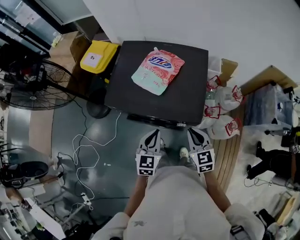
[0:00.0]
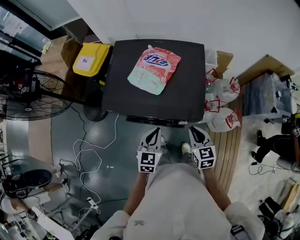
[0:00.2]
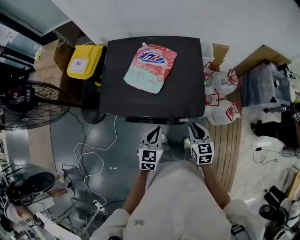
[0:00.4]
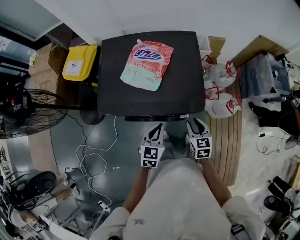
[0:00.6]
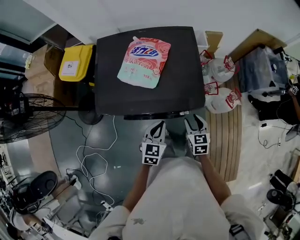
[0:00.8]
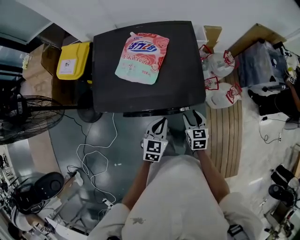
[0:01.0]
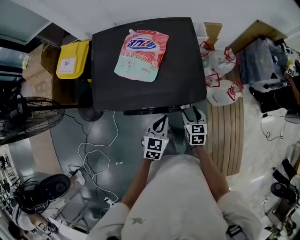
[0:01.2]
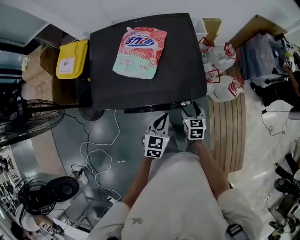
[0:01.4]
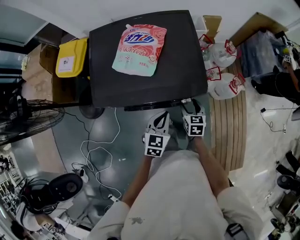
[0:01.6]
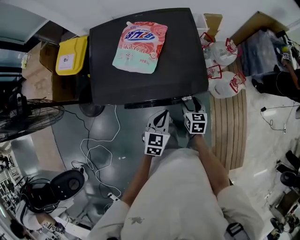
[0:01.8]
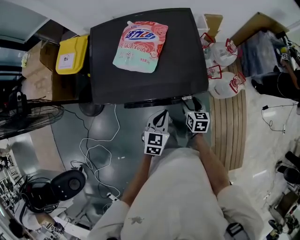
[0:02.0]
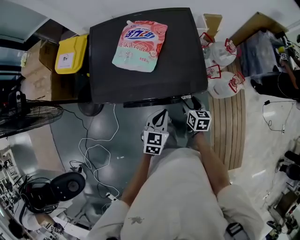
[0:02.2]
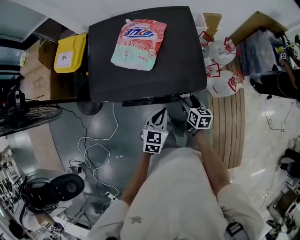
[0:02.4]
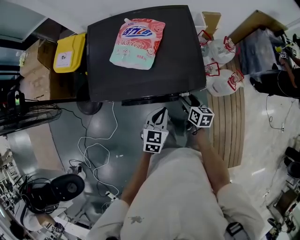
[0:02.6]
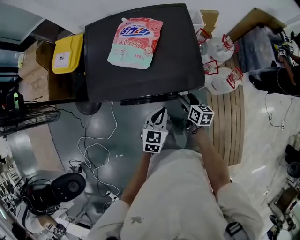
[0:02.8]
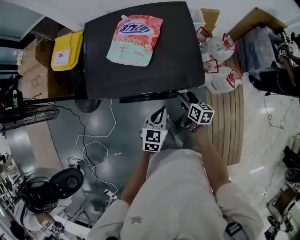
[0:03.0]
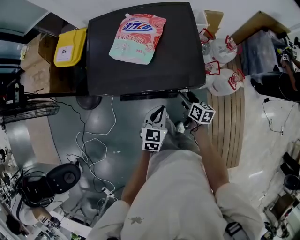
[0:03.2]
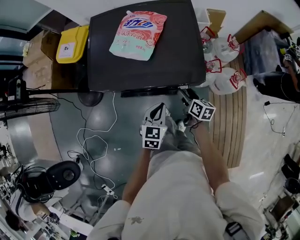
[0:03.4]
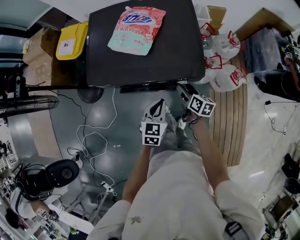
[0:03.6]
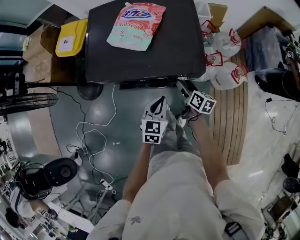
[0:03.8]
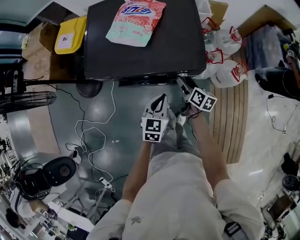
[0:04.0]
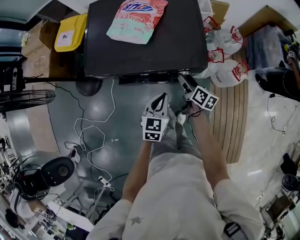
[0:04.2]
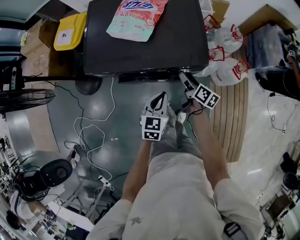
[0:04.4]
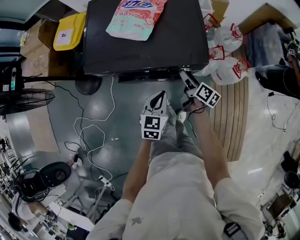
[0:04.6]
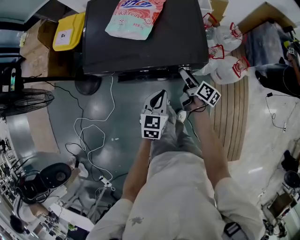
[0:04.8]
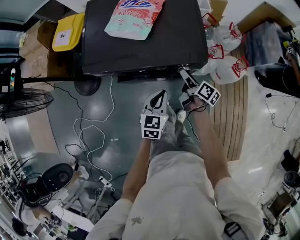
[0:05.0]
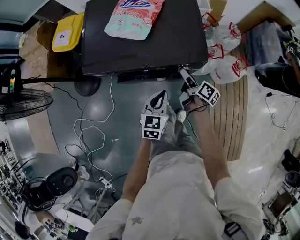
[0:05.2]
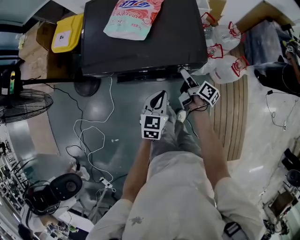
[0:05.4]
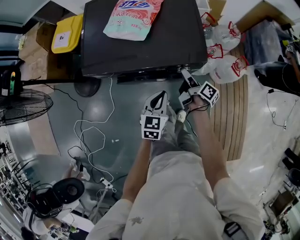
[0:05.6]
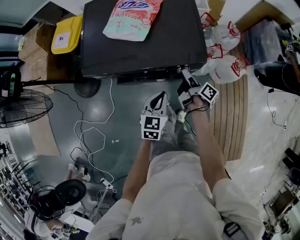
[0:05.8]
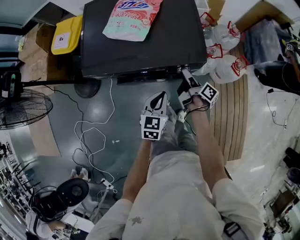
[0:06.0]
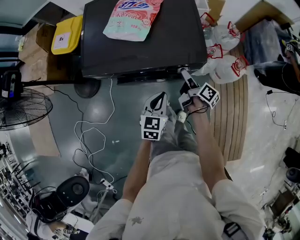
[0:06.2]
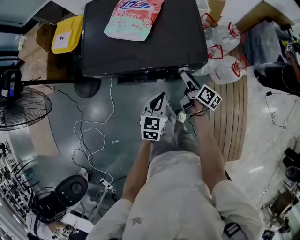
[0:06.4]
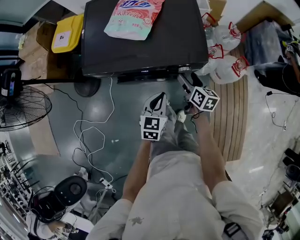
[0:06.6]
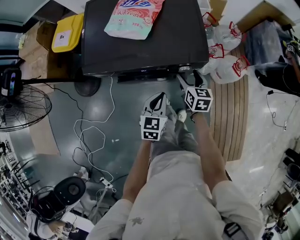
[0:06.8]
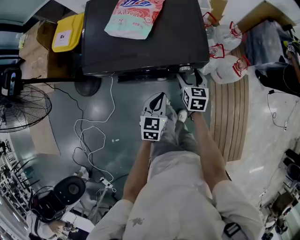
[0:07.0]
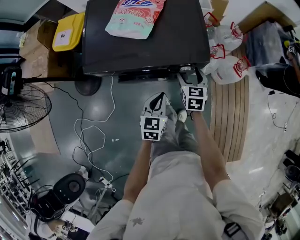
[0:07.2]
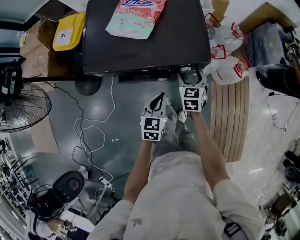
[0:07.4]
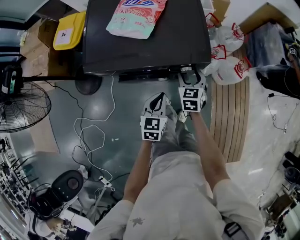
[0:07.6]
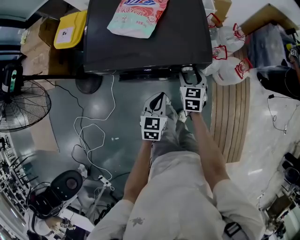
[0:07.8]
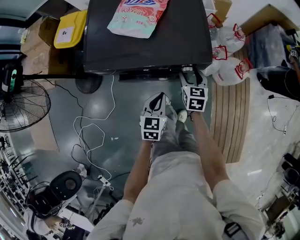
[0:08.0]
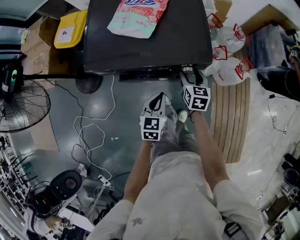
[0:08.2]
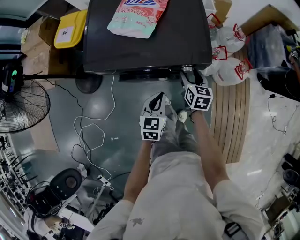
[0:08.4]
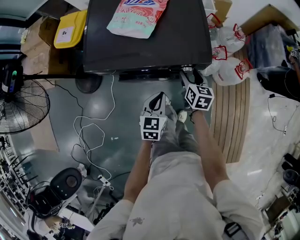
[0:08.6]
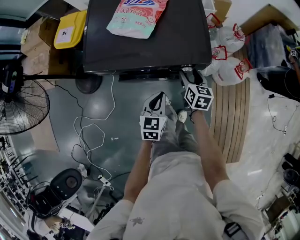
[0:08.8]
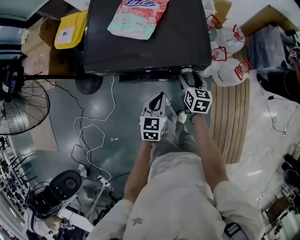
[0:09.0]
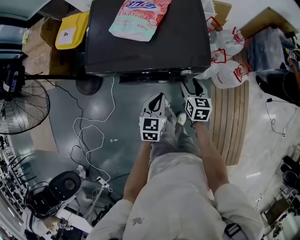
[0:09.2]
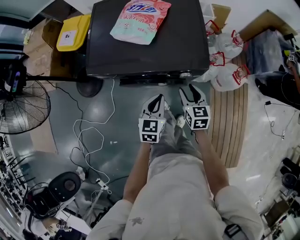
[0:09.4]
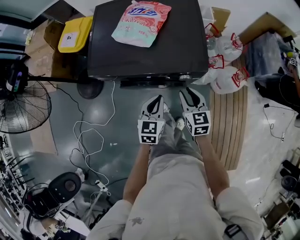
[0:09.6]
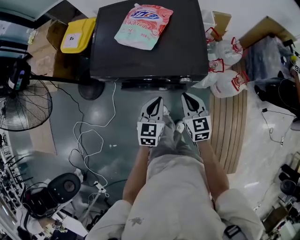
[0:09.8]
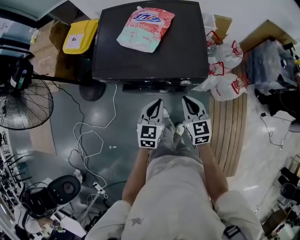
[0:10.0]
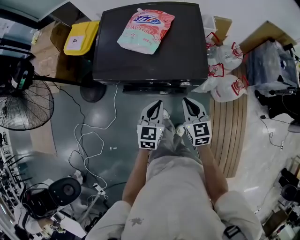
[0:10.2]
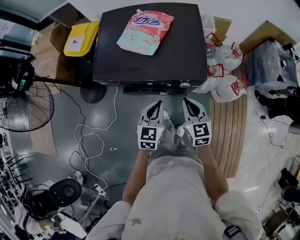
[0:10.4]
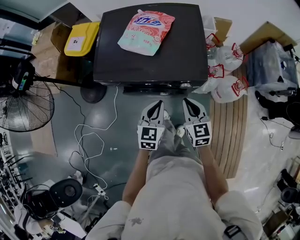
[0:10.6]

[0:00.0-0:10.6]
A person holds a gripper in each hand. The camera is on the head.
0:00.0 to 0:01.6: The left gripper heads downward, covering roughly 10 cm, and turns by some 20 degrees. Meanwhile the right gripper goes roughly 20 cm downward, swivels about 40 degrees, and opens.
0:01.6 to 0:03.0: The right gripper swivels some 30 degrees.
0:03.0 to 0:04.6: The right gripper turns by roughly 30 degrees.
0:04.6 to 0:06.0: The right gripper swivels about 30 degrees.
0:06.0 to 0:07.6: The right gripper twists about 90 degrees counterclockwise, seen from behind.
0:07.6 to 0:09.0: The right gripper swivels some 20 degrees.
0:09.0 to 0:10.6: The left gripper heads upward, covering roughly 5 cm, while the right gripper moves upward and backward, roughly 15 cm, rotates about 30 degrees, and closes its fingers.

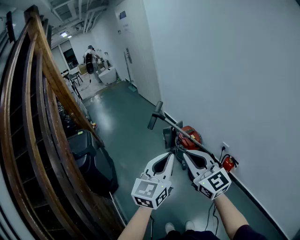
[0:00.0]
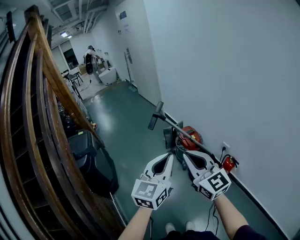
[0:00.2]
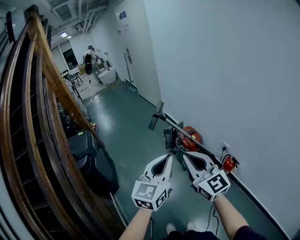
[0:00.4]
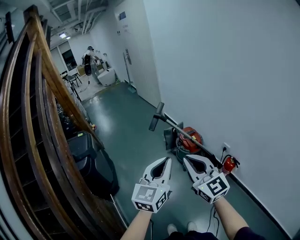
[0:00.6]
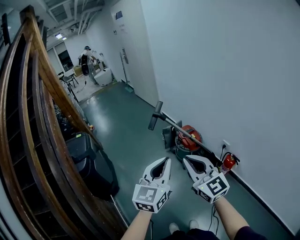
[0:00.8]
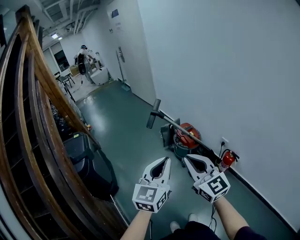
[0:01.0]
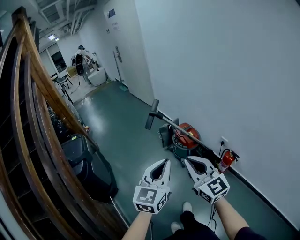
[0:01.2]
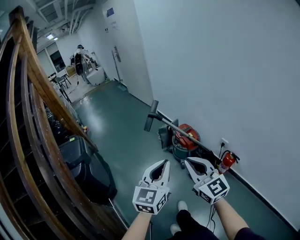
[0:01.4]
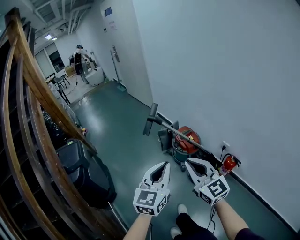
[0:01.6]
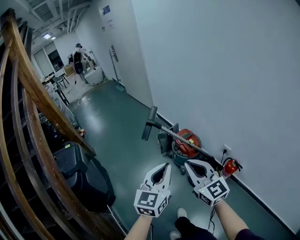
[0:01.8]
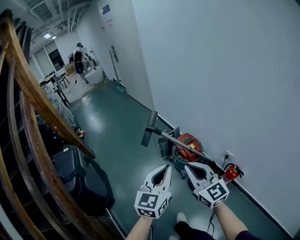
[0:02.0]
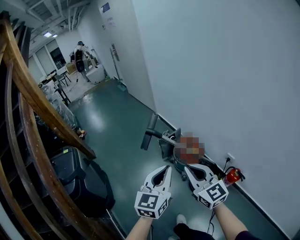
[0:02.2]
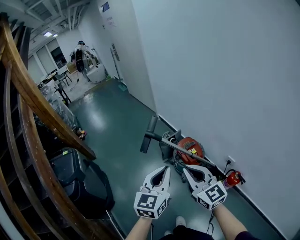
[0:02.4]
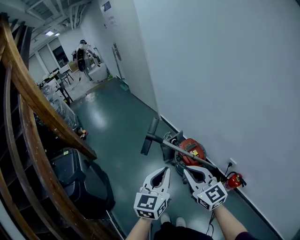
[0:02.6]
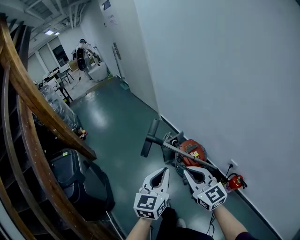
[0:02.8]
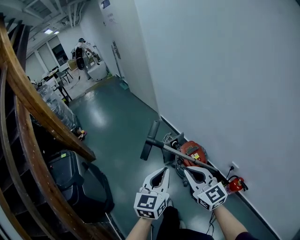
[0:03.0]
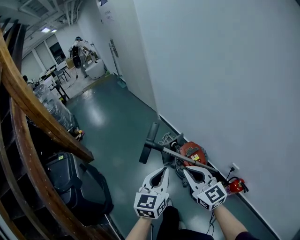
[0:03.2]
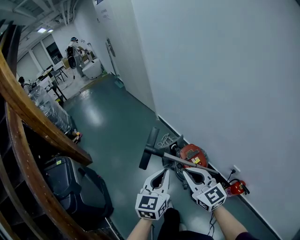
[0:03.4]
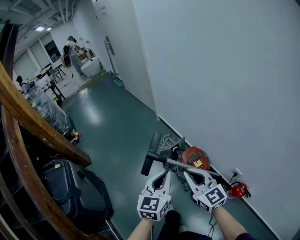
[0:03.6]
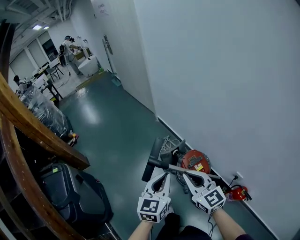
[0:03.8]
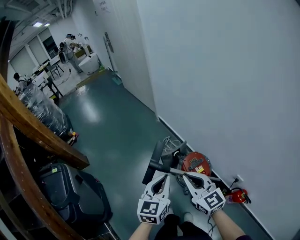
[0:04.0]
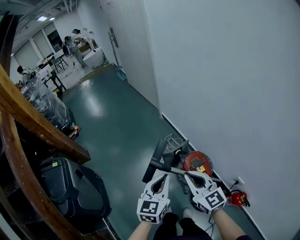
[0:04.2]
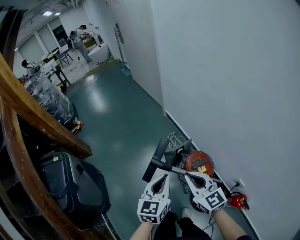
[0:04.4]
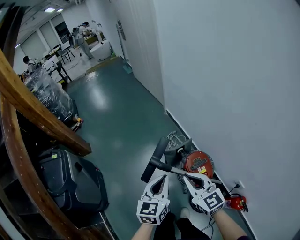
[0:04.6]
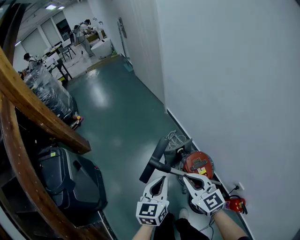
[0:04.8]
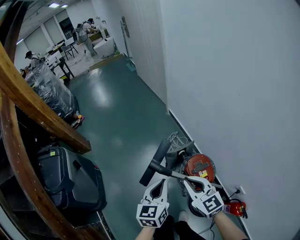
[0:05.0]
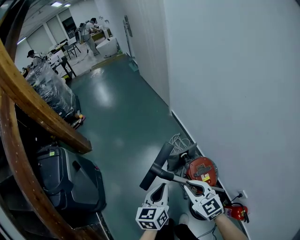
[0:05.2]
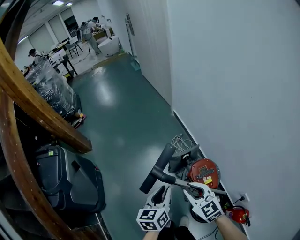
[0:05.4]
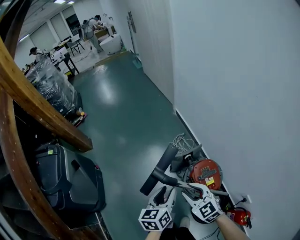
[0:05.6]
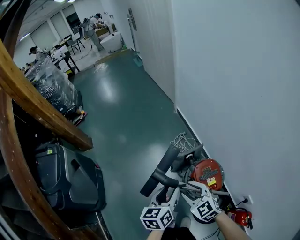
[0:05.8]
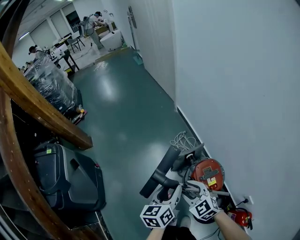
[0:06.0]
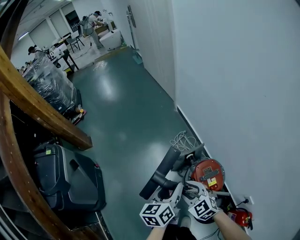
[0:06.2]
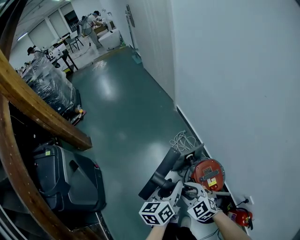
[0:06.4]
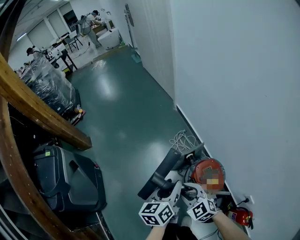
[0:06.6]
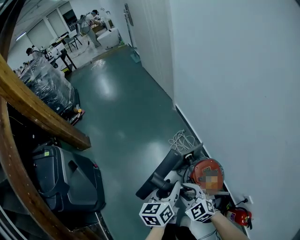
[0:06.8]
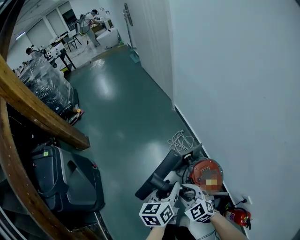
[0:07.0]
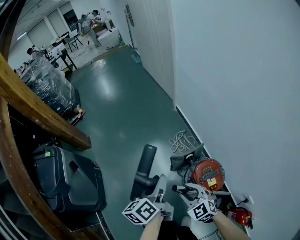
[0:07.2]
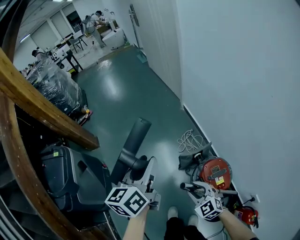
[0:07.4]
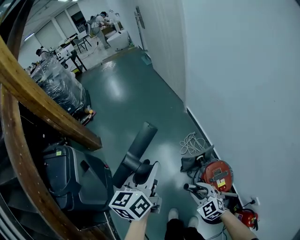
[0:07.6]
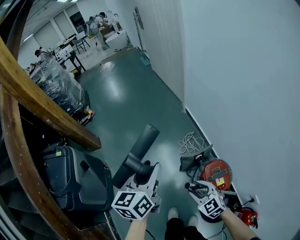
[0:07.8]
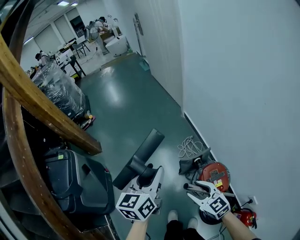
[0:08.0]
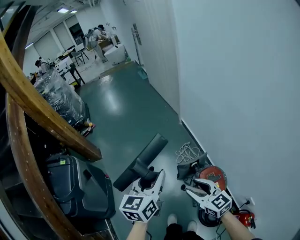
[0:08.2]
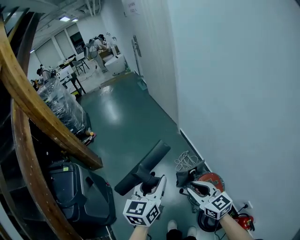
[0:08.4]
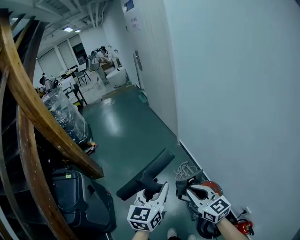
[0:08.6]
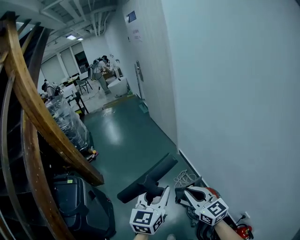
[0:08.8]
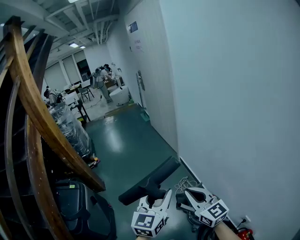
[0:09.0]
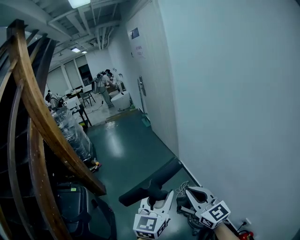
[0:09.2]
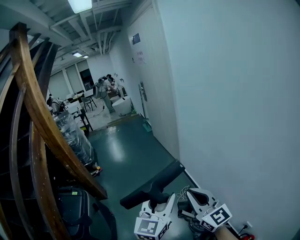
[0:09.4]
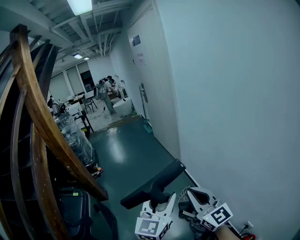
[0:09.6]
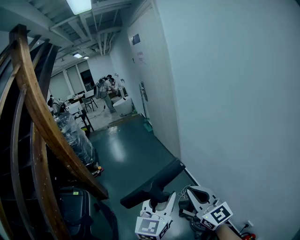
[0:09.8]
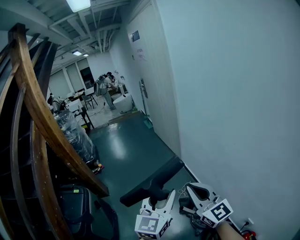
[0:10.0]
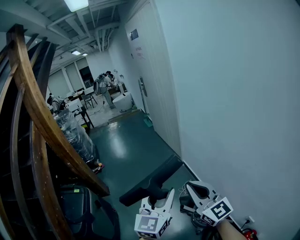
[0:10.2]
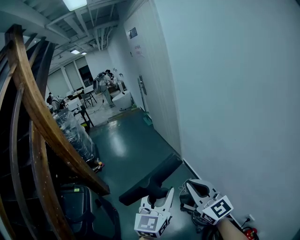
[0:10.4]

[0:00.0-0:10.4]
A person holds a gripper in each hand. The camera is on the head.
0:00.0 to 0:01.4: The left gripper heads downward and forward, covering some 10 cm, while the right gripper heads downward, covering roughly 5 cm.
0:01.4 to 0:03.0: Both grippers travel together forward, roughly 30 cm.
0:03.0 to 0:04.4: The left gripper is displaced forward and downward by roughly 20 cm, while the right gripper goes roughly 20 cm forward.
0:04.4 to 0:06.0: Both grippers move downward, about 20 cm. The left gripper rotates about 30 degrees, and opens its fingers, while the right gripper swivels some 30 degrees, and opens up.
0:06.0 to 0:07.4: The left gripper heads upward, forward and to the left, covering about 20 cm.
0:07.4 to 0:09.0: The right gripper shifts about 35 cm upward, tips its fingers upward by approximately 40 degrees, and closes up, while the left gripper moves upward and backward, some 25 cm, and turns by roughly 30 degrees.
0:09.0 to 0:10.4: The right gripper moves upward, about 10 cm.

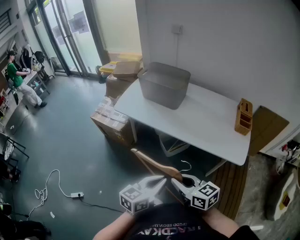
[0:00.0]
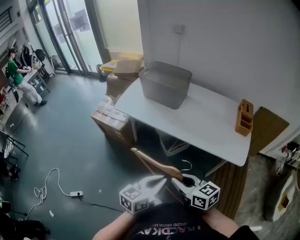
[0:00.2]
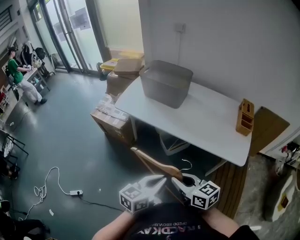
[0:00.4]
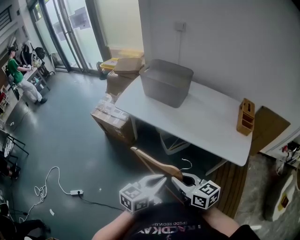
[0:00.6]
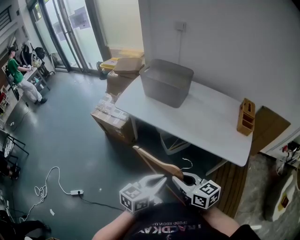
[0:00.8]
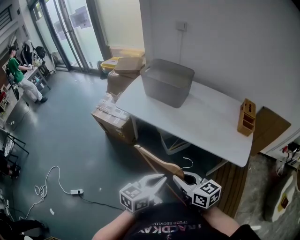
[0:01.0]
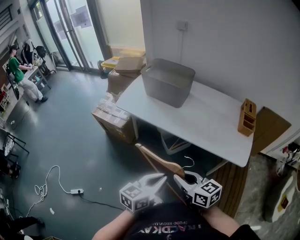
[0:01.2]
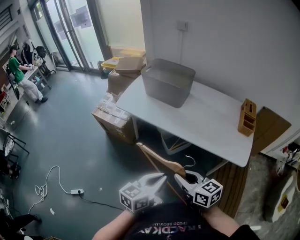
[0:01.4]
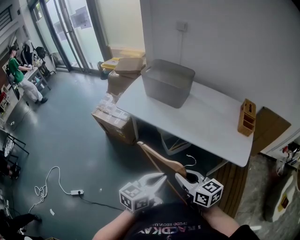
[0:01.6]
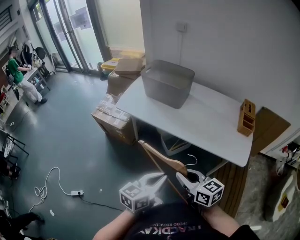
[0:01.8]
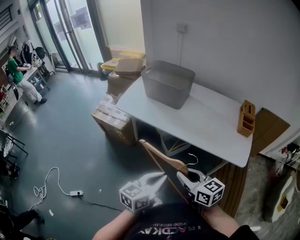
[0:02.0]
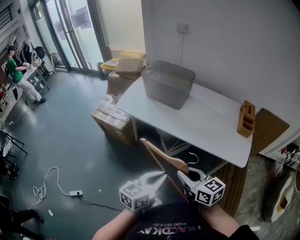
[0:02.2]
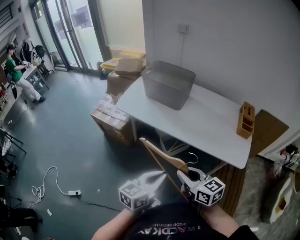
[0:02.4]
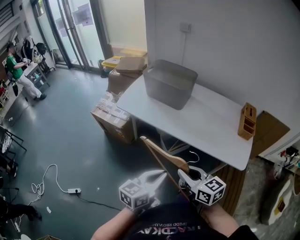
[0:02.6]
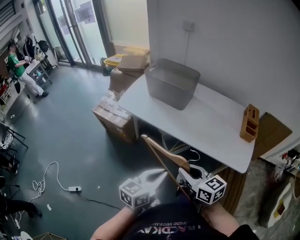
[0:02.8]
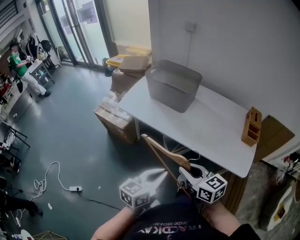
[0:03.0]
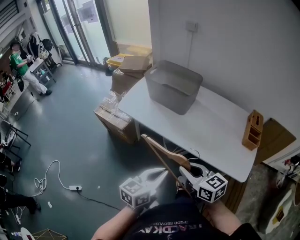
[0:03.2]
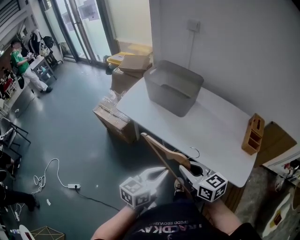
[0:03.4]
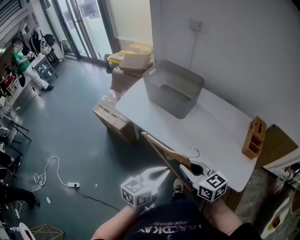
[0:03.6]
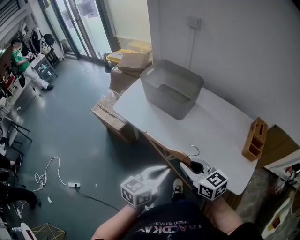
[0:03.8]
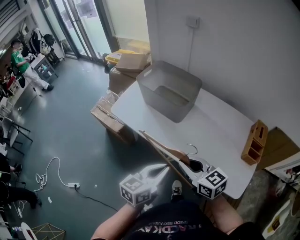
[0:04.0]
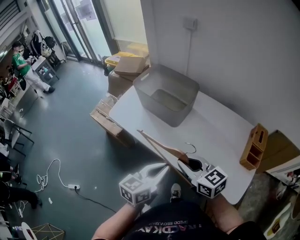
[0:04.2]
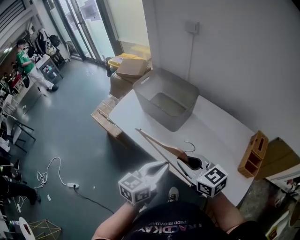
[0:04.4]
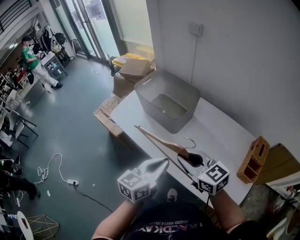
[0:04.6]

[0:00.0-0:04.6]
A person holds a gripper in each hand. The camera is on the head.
0:00.0 to 0:01.6: There are only small adjustments of the grippers.
0:01.6 to 0:03.0: The grippers both shift forward by about 5 cm.
0:03.0 to 0:04.6: Both grippers travel together forward and to the right, some 30 cm.
